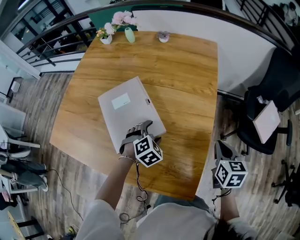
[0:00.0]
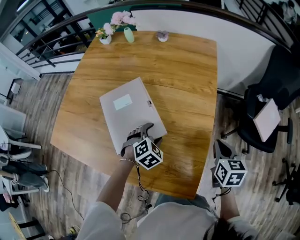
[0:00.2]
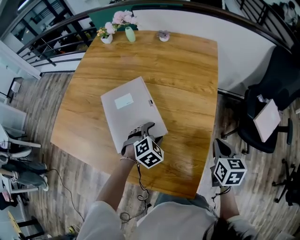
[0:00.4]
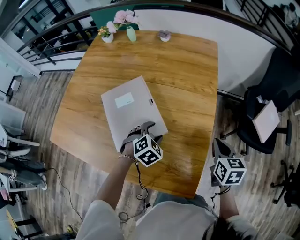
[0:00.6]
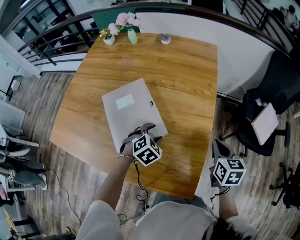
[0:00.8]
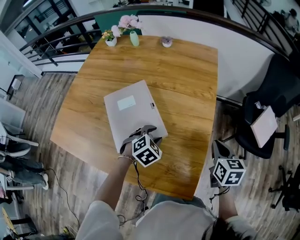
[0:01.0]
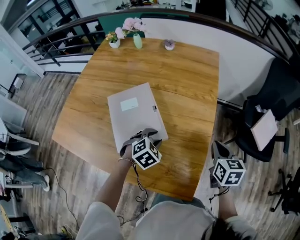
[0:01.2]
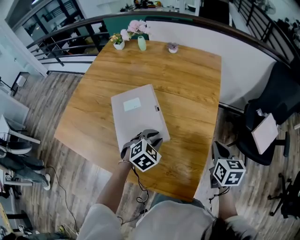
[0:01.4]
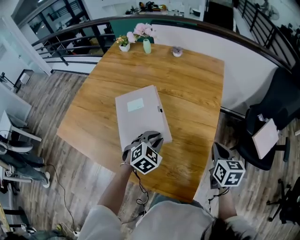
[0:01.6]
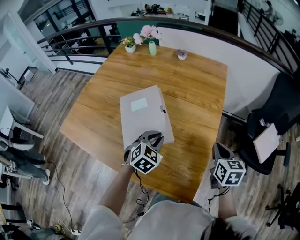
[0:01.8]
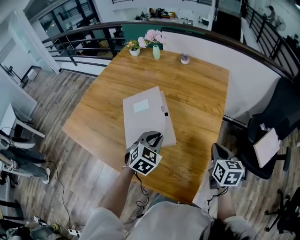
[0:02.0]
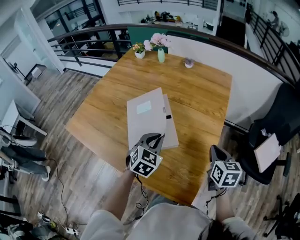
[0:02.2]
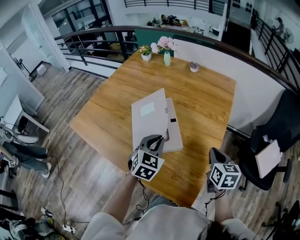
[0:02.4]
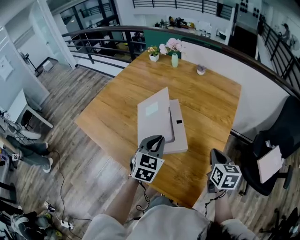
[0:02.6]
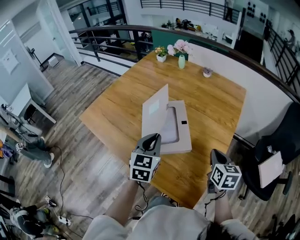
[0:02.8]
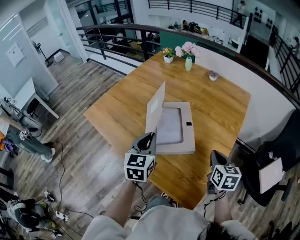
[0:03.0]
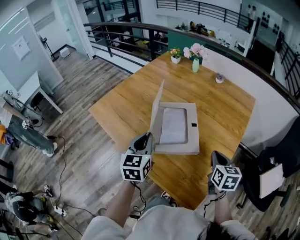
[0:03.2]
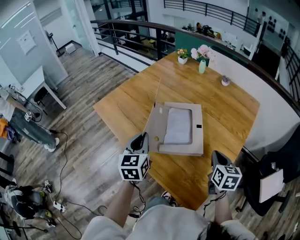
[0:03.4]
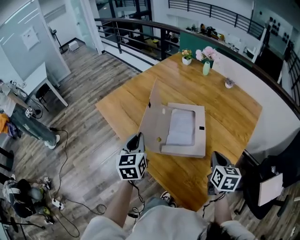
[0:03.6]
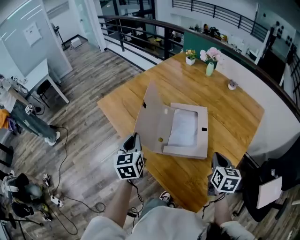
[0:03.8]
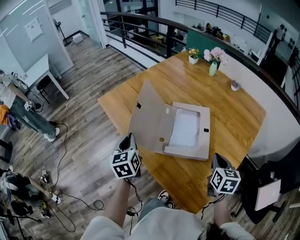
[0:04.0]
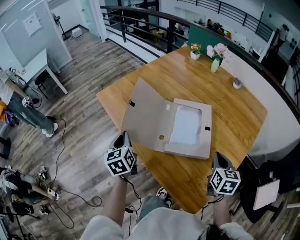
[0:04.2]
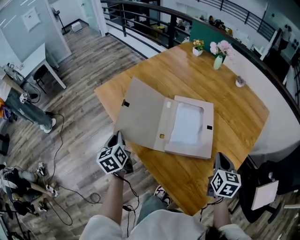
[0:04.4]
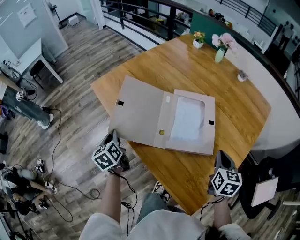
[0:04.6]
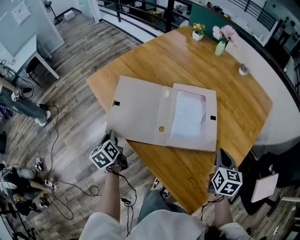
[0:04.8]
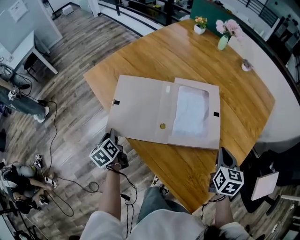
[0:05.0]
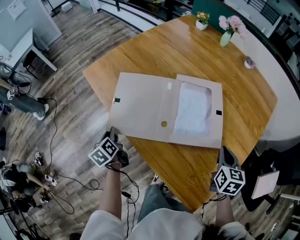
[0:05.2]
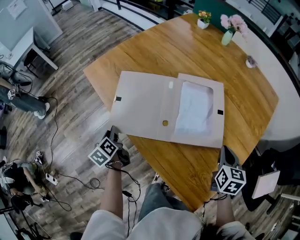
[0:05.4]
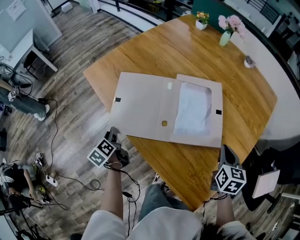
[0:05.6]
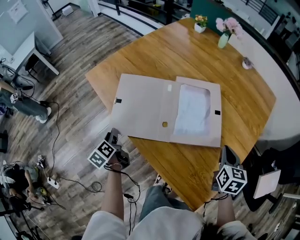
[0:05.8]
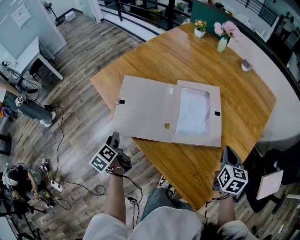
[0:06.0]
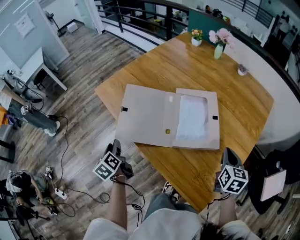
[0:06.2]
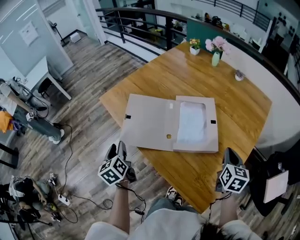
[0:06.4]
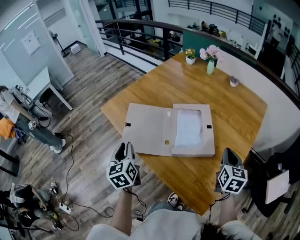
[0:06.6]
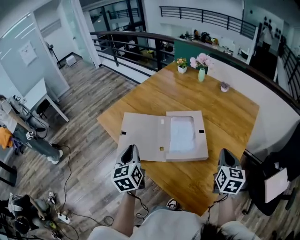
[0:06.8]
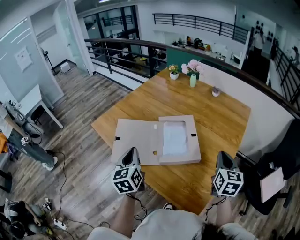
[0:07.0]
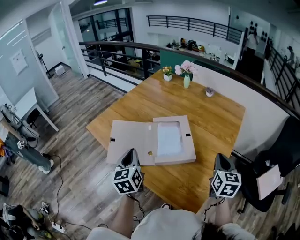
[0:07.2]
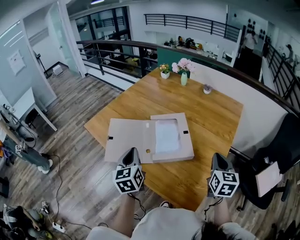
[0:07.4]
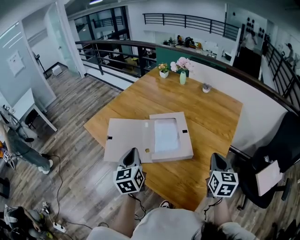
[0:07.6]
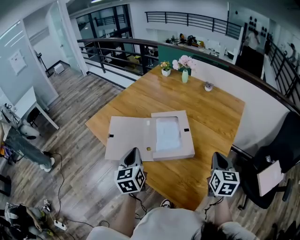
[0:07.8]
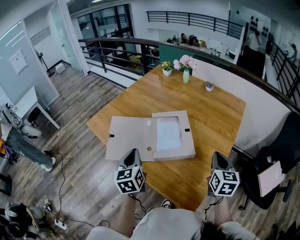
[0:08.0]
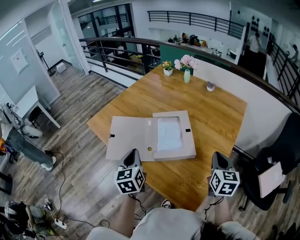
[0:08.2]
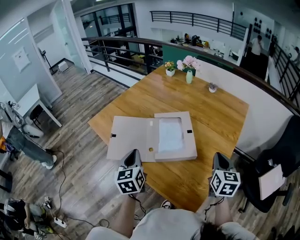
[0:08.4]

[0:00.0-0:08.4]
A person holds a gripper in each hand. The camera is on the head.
0:00.0 to 0:01.4: The left gripper travels upward by some 5 cm, and closes.
0:01.4 to 0:02.8: The left gripper is displaced upward and to the left by approximately 15 cm, and tilts its fingers roughly 30 degrees upward. The right gripper moves to the left, roughly 10 cm.
0:02.8 to 0:04.2: The left gripper shifts approximately 25 cm to the left, and rotates about 50 degrees, while the right gripper shifts about 10 cm to the left and forward.
0:04.2 to 0:05.6: The left gripper heads downward and to the left, covering roughly 20 cm, and changes its angle by roughly 30 degrees, while the right gripper goes some 5 cm downward.
0:05.6 to 0:07.0: The left gripper is displaced upward and to the right by approximately 30 cm, and rotates approximately 40 degrees; the right gripper shifts about 15 cm upward.
0:07.0 to 0:08.4: The grippers make only small movements.

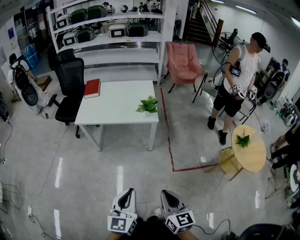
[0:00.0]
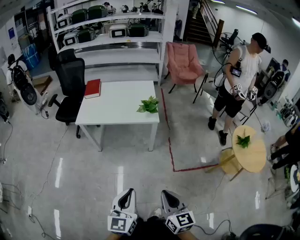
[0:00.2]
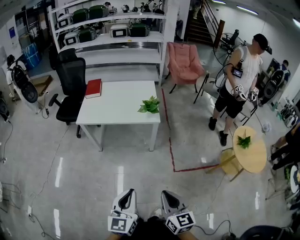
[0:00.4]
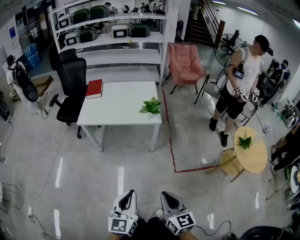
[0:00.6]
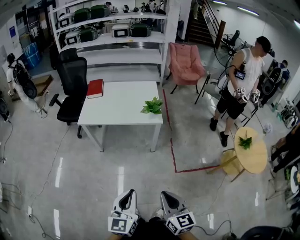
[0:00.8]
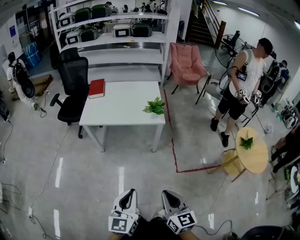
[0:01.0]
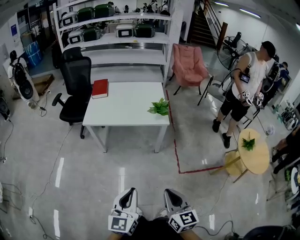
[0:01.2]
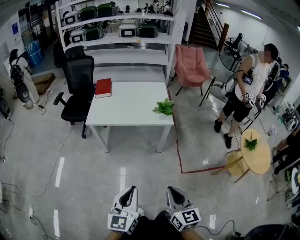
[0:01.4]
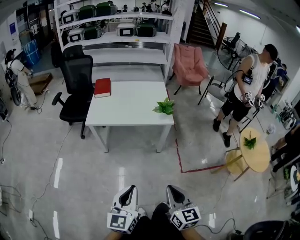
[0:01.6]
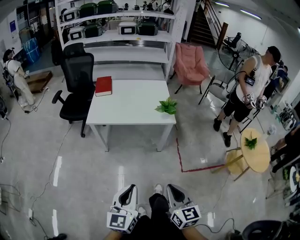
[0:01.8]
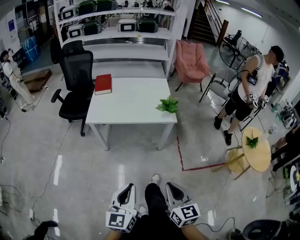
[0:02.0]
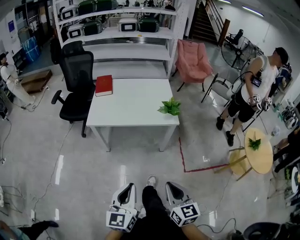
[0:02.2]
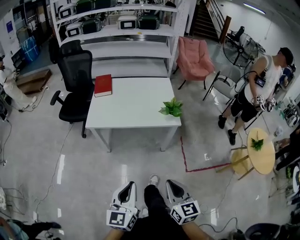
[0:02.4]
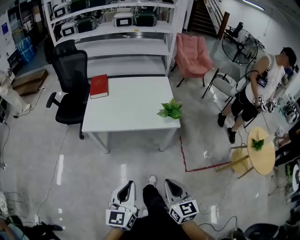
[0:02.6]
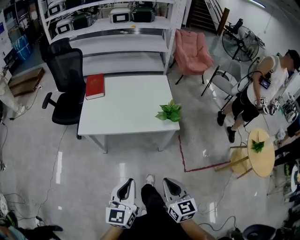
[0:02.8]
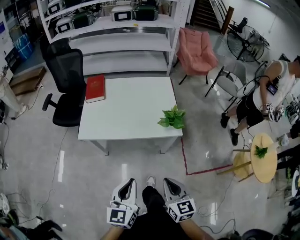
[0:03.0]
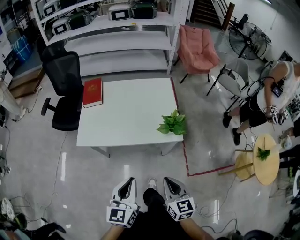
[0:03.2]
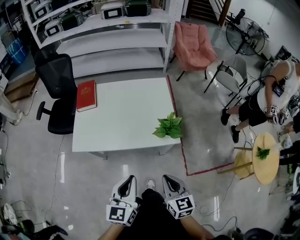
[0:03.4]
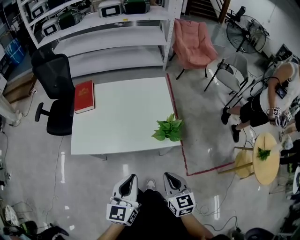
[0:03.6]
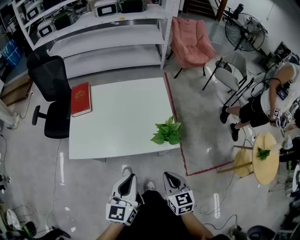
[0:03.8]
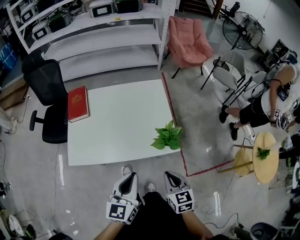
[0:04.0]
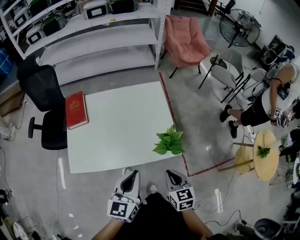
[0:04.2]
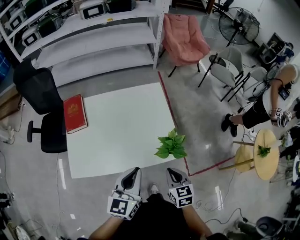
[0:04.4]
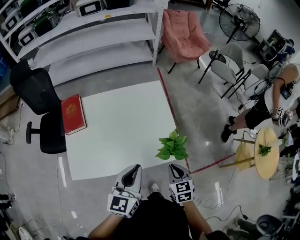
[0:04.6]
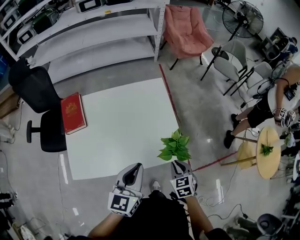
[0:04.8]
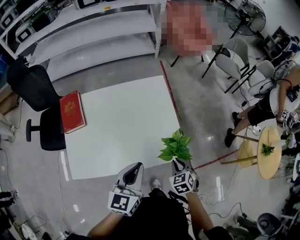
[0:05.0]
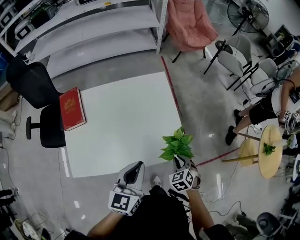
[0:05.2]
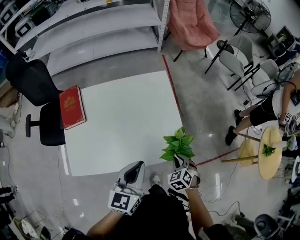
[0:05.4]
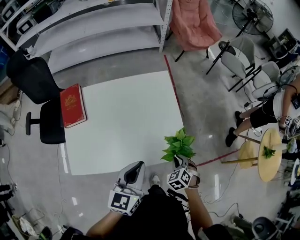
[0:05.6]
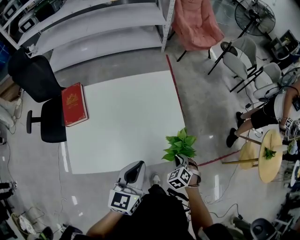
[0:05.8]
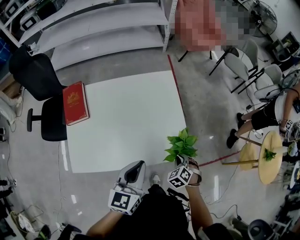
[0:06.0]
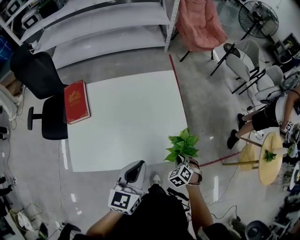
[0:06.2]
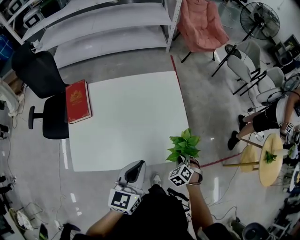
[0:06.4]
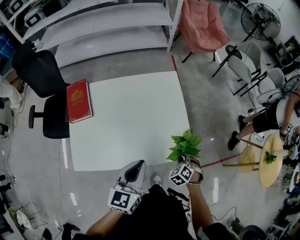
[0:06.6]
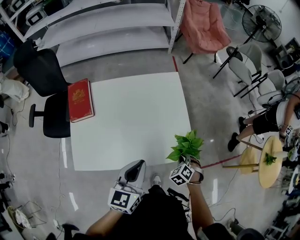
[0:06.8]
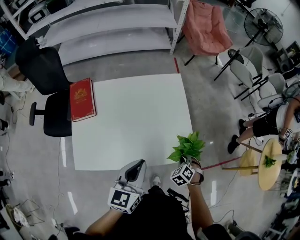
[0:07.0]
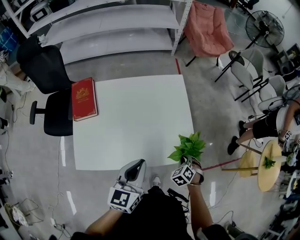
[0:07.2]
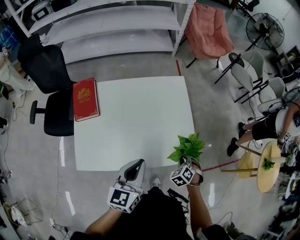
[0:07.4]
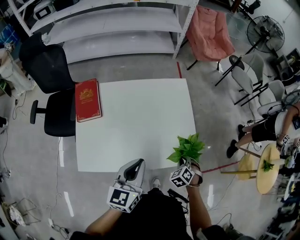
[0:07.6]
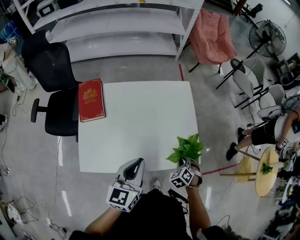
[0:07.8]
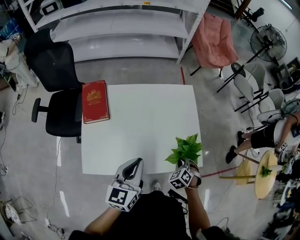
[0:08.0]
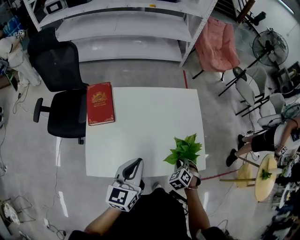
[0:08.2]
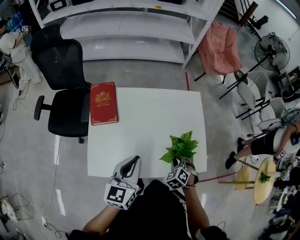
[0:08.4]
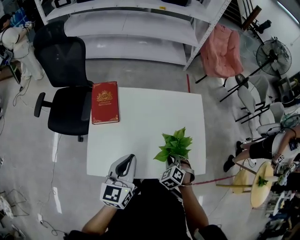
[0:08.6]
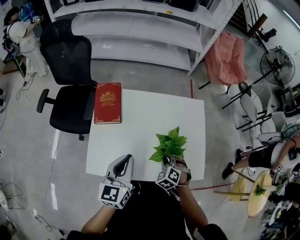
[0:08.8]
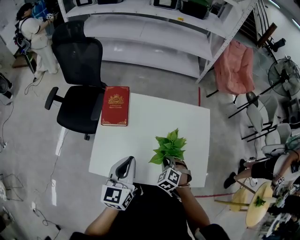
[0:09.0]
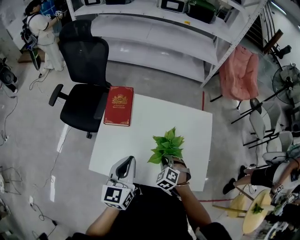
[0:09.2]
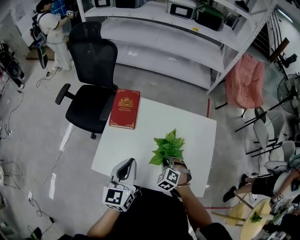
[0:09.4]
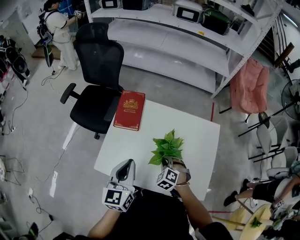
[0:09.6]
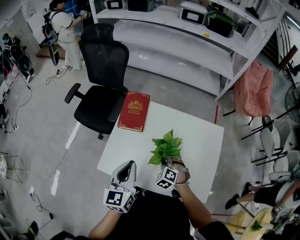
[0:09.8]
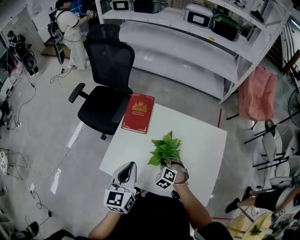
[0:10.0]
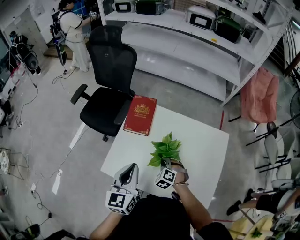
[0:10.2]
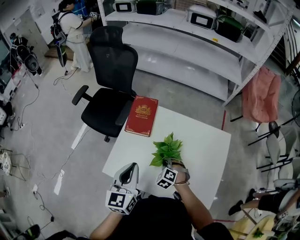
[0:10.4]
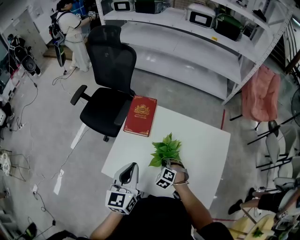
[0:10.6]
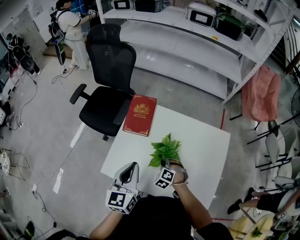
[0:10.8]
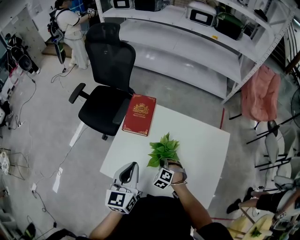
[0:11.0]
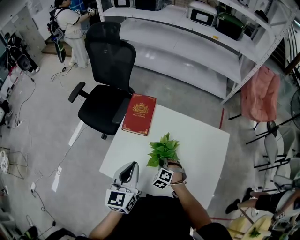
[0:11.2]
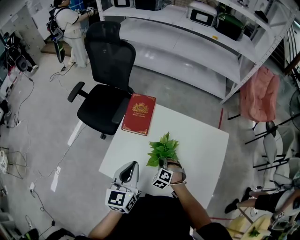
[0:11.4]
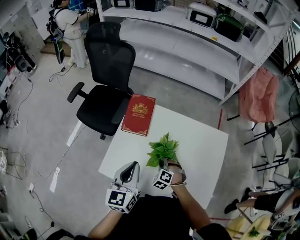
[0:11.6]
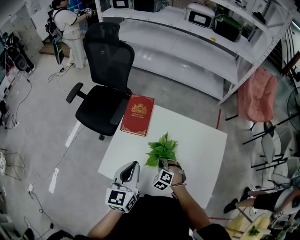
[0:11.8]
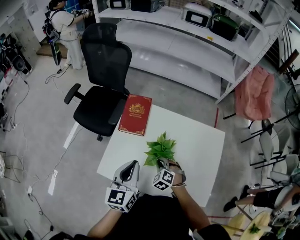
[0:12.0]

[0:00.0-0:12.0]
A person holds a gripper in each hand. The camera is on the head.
0:00.0 to 0:01.6: The grippers both shift to the left by roughly 15 cm.
0:01.6 to 0:03.0: Both grippers travel together forward, approximately 25 cm.
0:03.0 to 0:04.4: The grippers both shift forward by some 30 cm.
0:04.4 to 0:06.0: The right gripper travels downward and forward by about 15 cm, and swivels roughly 50 degrees, while the left gripper heads forward, covering some 5 cm.
0:06.0 to 0:07.6: The right gripper heads to the left, covering some 5 cm, while the left gripper heads to the left, covering about 10 cm.
0:07.6 to 0:09.0: The right gripper shifts by roughly 25 cm, and swivels about 30 degrees. Meanwhile the left gripper moves about 15 cm, and swivels roughly 20 degrees.
0:09.0 to 0:10.4: The right gripper shifts roughly 10 cm to the left and forward, while the left gripper heads to the left, covering roughly 5 cm.
0:10.4 to 0:12.0: The grippers stay close to where they were, moving slightly.

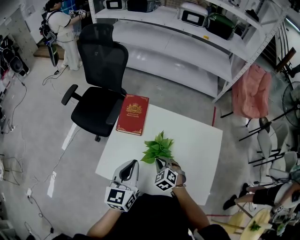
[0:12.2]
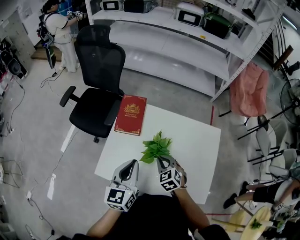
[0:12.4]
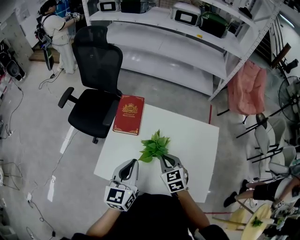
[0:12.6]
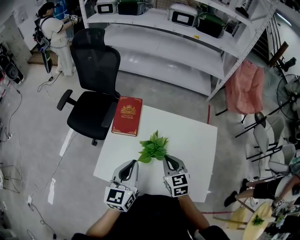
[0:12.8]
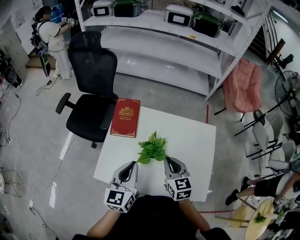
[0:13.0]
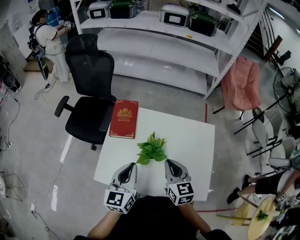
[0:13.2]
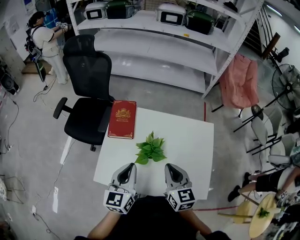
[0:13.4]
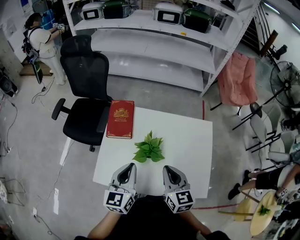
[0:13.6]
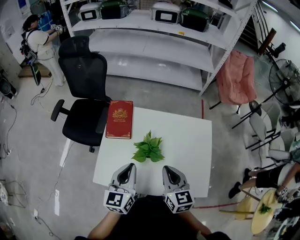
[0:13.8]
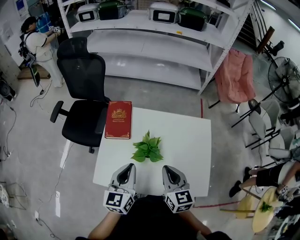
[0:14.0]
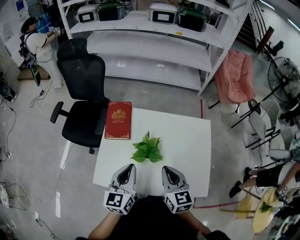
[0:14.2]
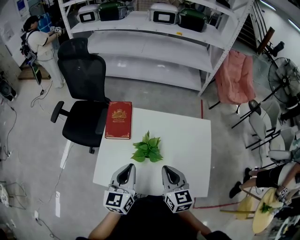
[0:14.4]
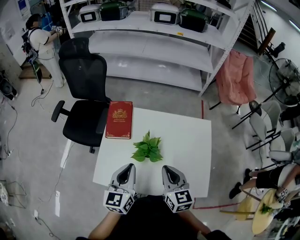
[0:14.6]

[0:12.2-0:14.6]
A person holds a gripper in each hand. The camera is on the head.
0:12.2 to 0:13.4: The right gripper shifts about 15 cm upward, and tilts its fingers roughly 30 degrees upward.
0:13.4 to 0:14.6: The grippers move only a little.

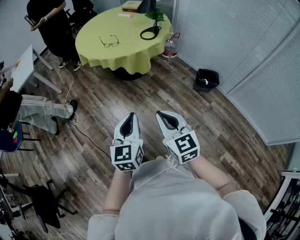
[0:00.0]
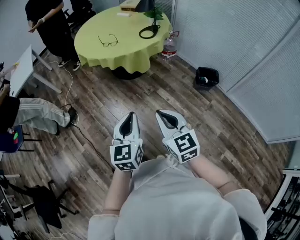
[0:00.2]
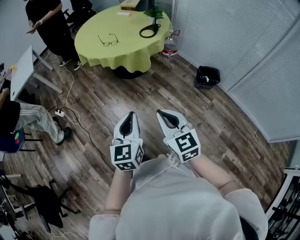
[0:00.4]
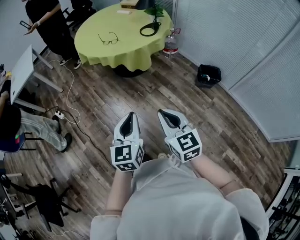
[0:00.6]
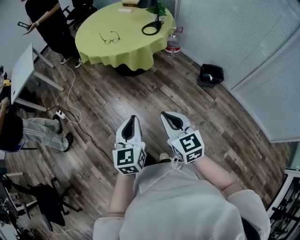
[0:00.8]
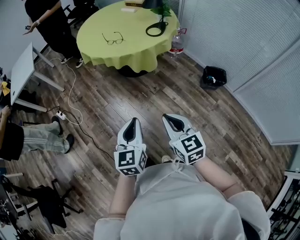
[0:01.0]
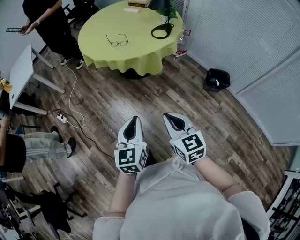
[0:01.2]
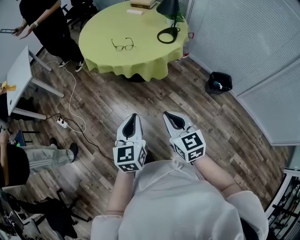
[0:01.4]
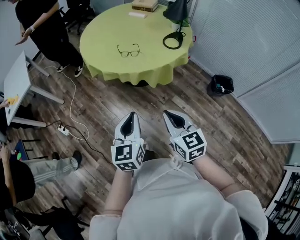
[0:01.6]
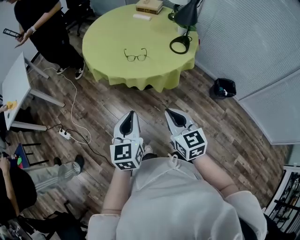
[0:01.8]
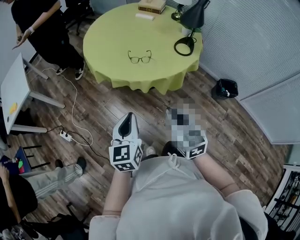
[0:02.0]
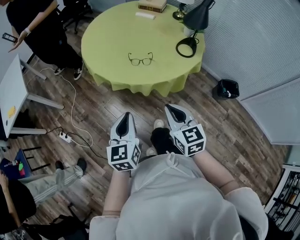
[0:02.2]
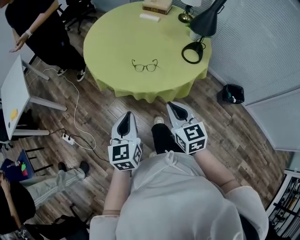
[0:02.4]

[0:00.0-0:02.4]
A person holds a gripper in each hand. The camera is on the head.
0:00.0 to 0:01.2: Both grippers move forward and to the left, approximately 15 cm.
0:01.2 to 0:02.4: The pair of grippers is taken forward and to the left, some 40 cm.
